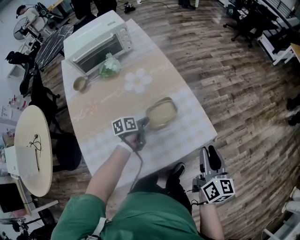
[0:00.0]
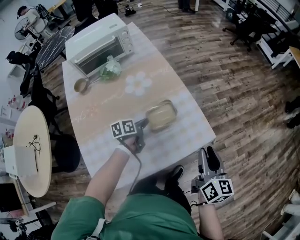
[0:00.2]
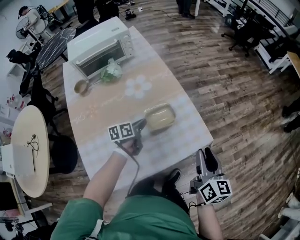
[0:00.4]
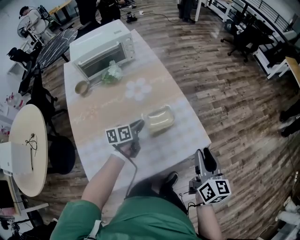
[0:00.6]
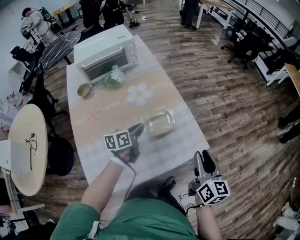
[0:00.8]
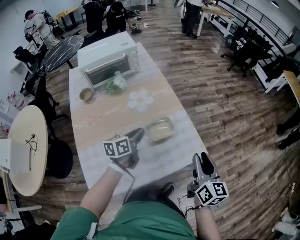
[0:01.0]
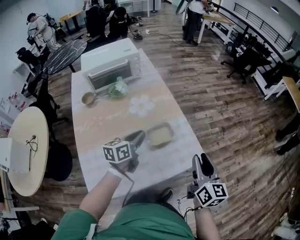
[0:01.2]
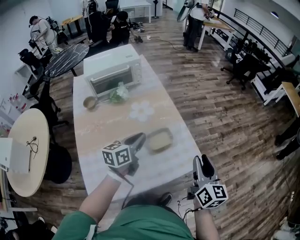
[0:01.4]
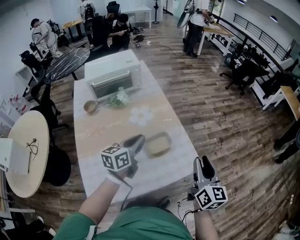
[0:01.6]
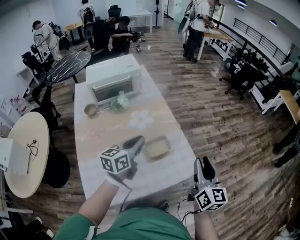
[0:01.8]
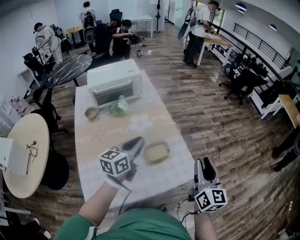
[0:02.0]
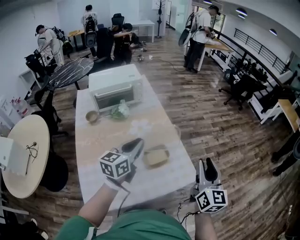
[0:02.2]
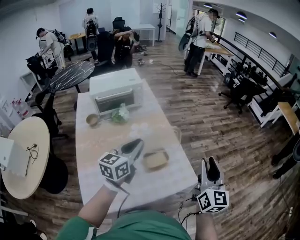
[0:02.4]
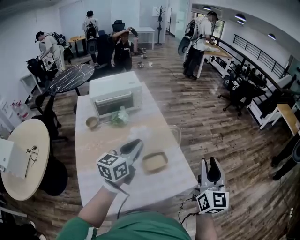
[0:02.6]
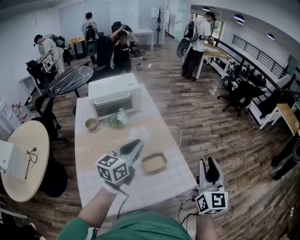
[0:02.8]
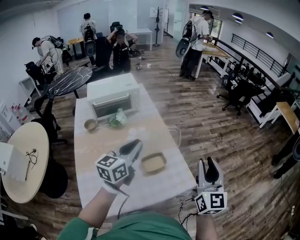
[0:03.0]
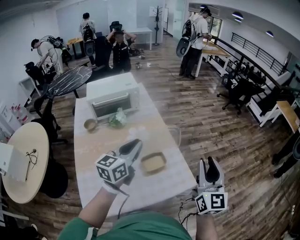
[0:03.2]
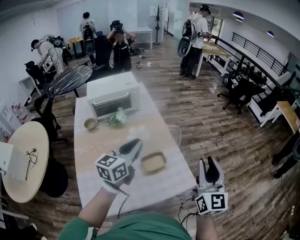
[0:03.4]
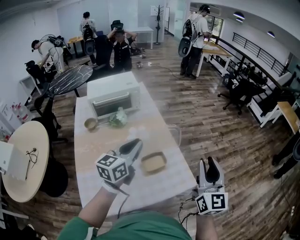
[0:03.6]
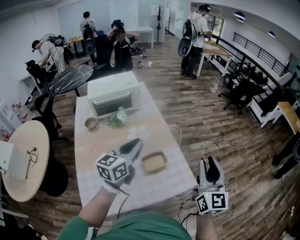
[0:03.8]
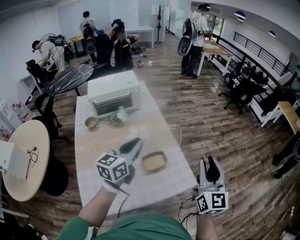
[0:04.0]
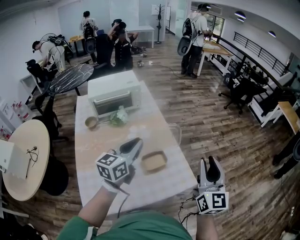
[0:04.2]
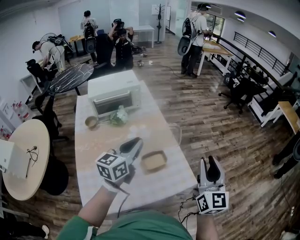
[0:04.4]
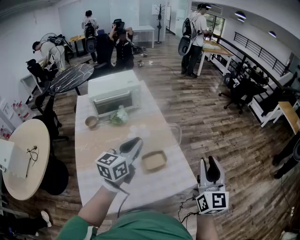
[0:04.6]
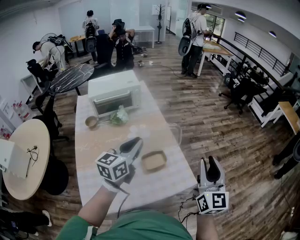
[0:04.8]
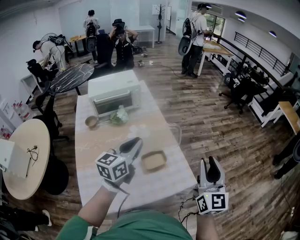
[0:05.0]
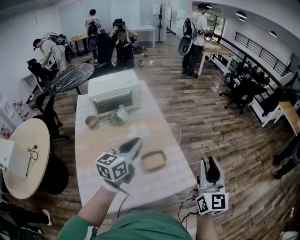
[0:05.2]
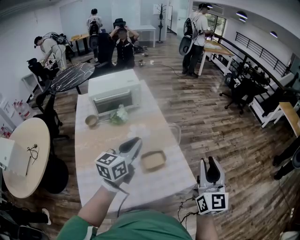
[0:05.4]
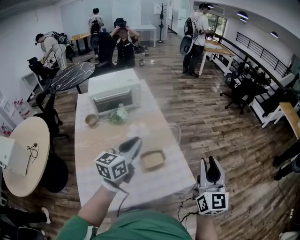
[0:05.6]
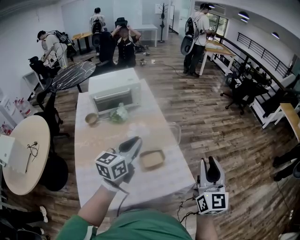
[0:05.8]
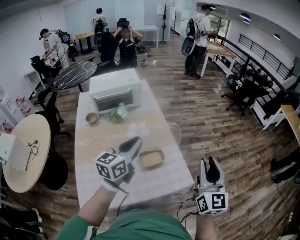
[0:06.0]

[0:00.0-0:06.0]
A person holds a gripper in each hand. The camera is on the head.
0:00.0 to 0:01.6: The right gripper moves upward, roughly 15 cm. The left gripper goes roughly 30 cm upward, and changes its angle by approximately 40 degrees.
0:01.6 to 0:03.0: Both grippers travel together upward, roughly 10 cm. The right gripper changes its angle by approximately 20 degrees.
0:03.0 to 0:04.4: Both grippers stay put.
0:04.4 to 0:06.0: The grippers stay close to where they were, moving slightly.

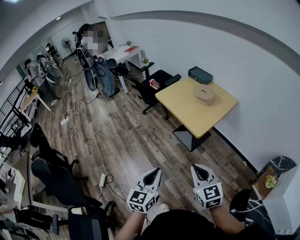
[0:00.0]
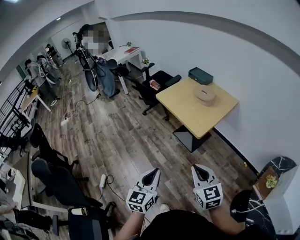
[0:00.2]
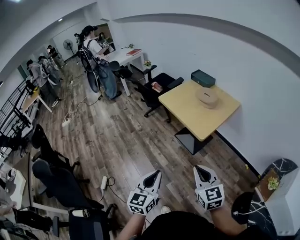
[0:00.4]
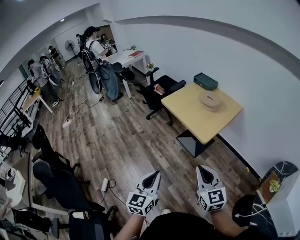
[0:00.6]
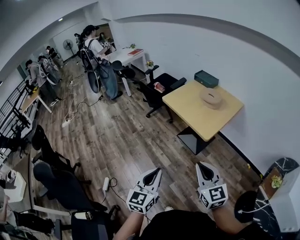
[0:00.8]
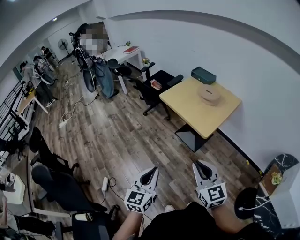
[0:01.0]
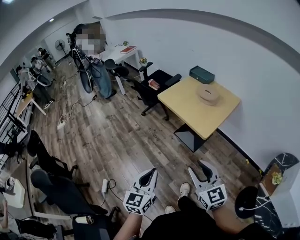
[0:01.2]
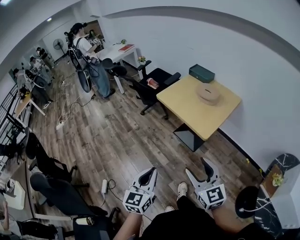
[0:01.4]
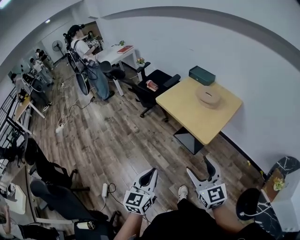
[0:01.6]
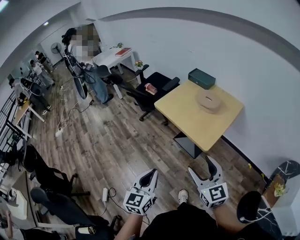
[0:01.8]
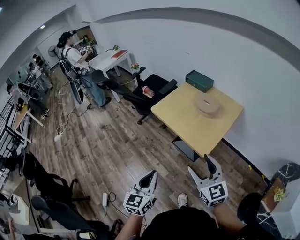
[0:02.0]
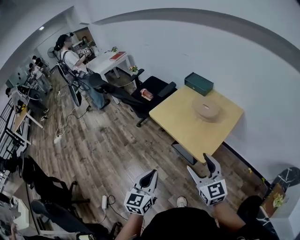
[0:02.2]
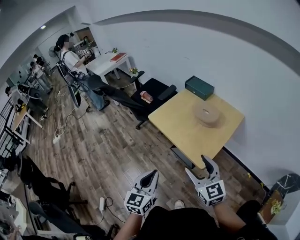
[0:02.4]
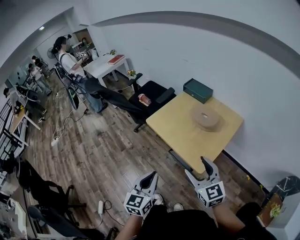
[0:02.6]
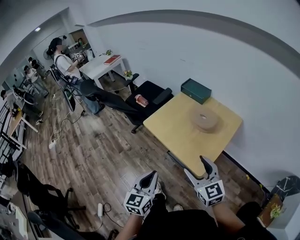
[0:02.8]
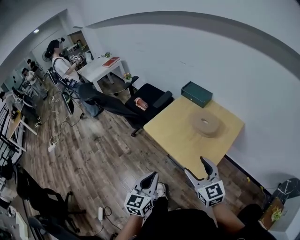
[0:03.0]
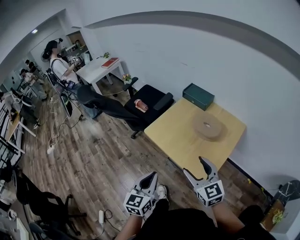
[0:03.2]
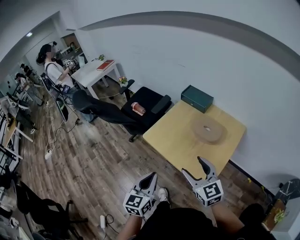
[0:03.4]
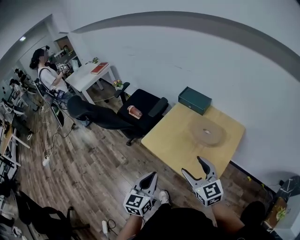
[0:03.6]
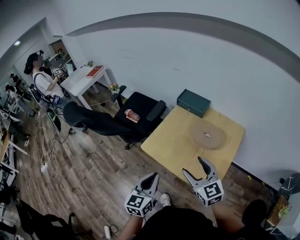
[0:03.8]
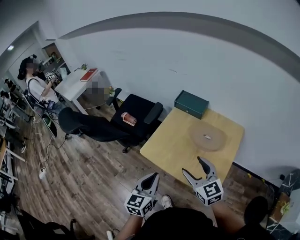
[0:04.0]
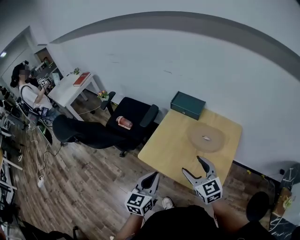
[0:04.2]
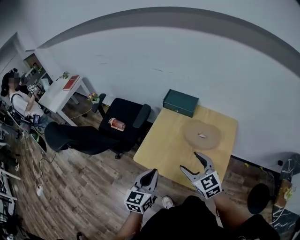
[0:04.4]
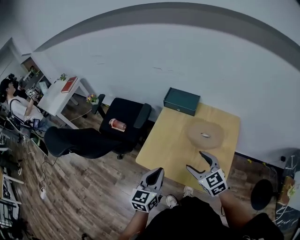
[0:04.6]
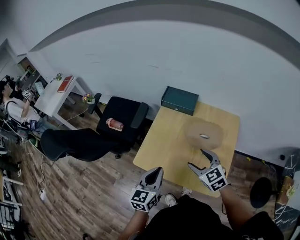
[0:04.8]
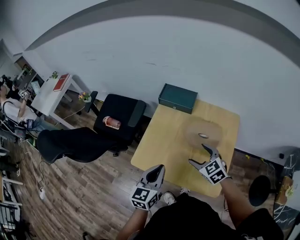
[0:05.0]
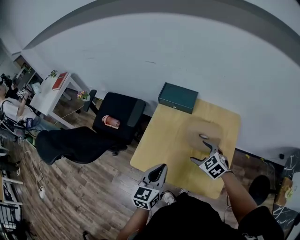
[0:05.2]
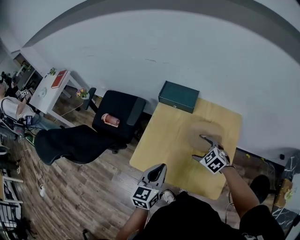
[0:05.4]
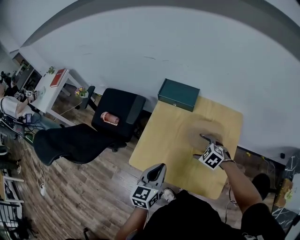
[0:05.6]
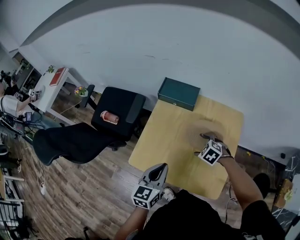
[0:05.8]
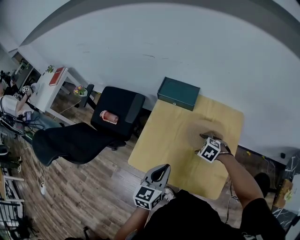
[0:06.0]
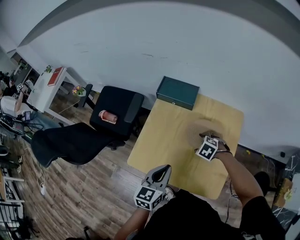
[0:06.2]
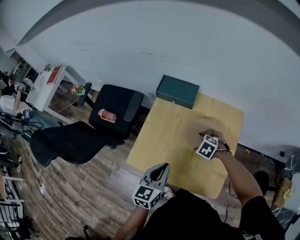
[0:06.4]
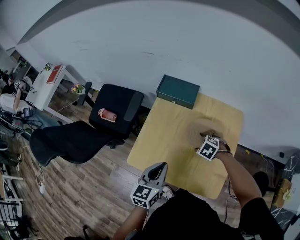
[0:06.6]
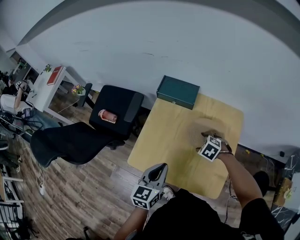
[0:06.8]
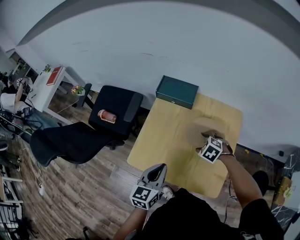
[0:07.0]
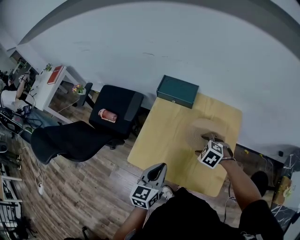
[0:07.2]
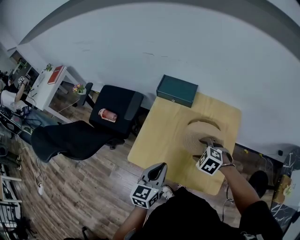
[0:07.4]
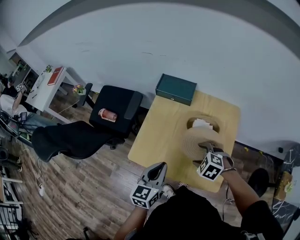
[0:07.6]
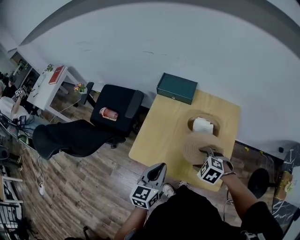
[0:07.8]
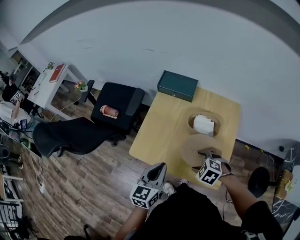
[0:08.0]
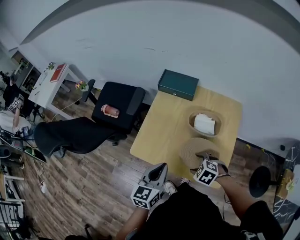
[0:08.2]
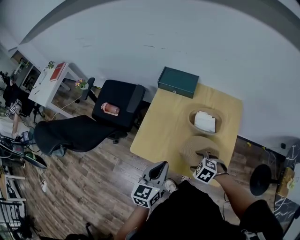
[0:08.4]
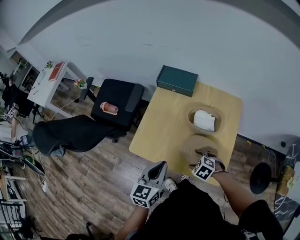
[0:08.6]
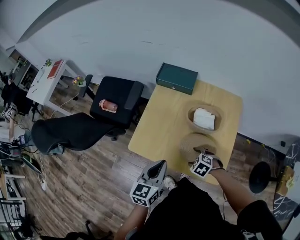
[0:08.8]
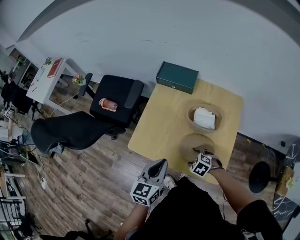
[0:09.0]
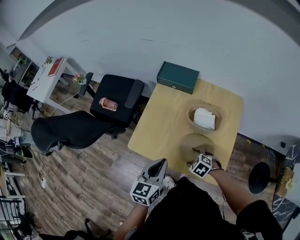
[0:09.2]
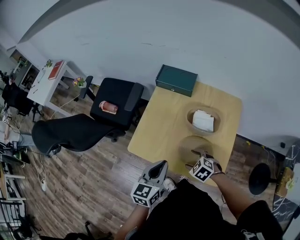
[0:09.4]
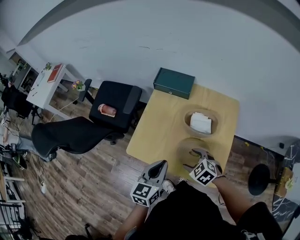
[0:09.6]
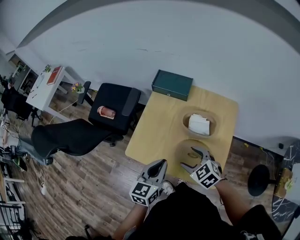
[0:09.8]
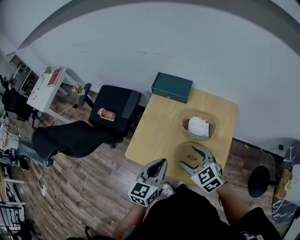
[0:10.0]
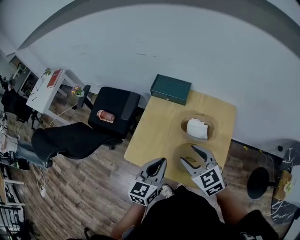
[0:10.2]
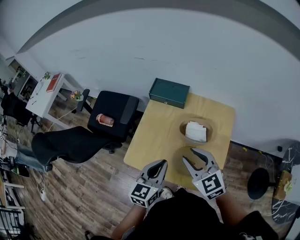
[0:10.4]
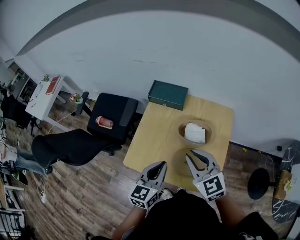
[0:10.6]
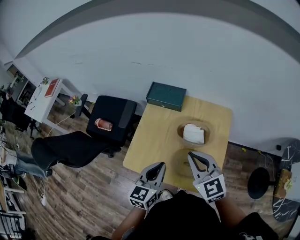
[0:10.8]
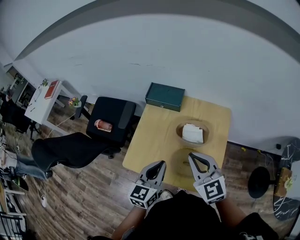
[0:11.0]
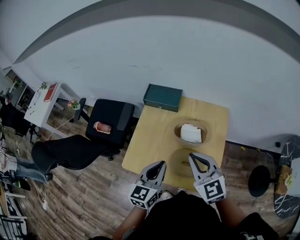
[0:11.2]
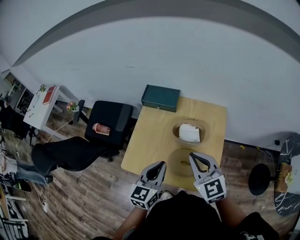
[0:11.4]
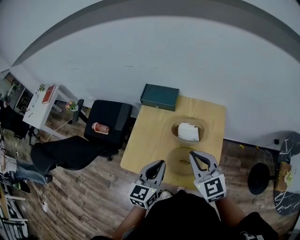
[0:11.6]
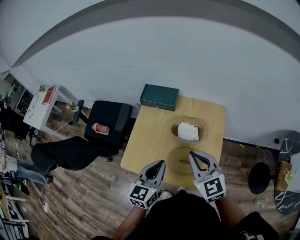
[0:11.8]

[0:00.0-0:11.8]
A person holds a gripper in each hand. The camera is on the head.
0:00.0 to 0:01.4: The grippers both shift to the left and forward by approximately 10 cm. The right gripper opens its fingers.
0:01.4 to 0:03.0: Both grippers travel together forward, some 35 cm.
0:03.0 to 0:04.4: Both grippers move forward, about 25 cm. The left gripper swivels about 20 degrees.
0:04.4 to 0:06.0: The right gripper is displaced downward, forward and to the right by roughly 25 cm, and angles its fingers downward, by about 50 degrees; the left gripper goes about 15 cm forward, to the right and downward.
0:06.0 to 0:07.4: The right gripper moves some 10 cm.
0:07.4 to 0:08.8: The right gripper shifts approximately 15 cm downward and backward.
0:08.8 to 0:10.4: The right gripper shifts about 25 cm upward, angles its fingers upward, by roughly 50 degrees, and closes. Meanwhile the left gripper travels upward by approximately 5 cm.
0:10.4 to 0:11.8: The right gripper changes place by roughly 5 cm.

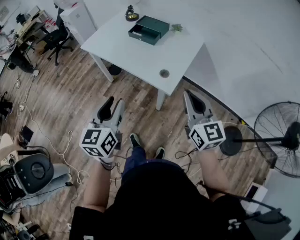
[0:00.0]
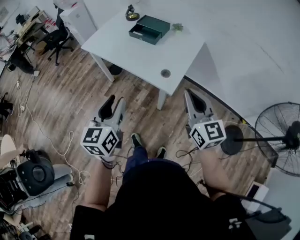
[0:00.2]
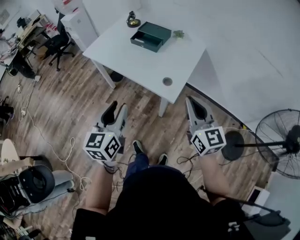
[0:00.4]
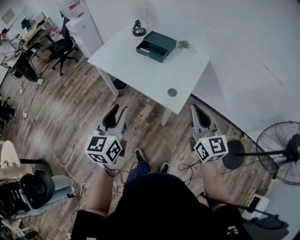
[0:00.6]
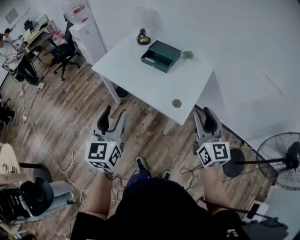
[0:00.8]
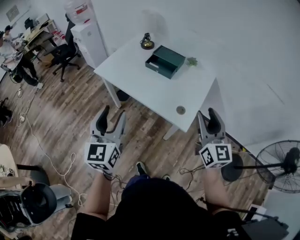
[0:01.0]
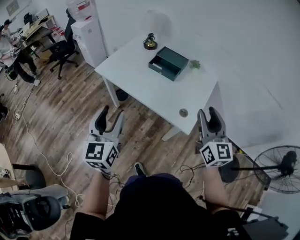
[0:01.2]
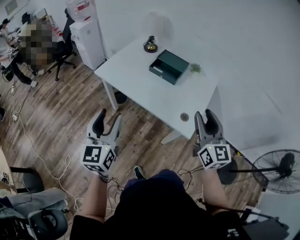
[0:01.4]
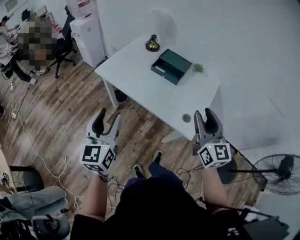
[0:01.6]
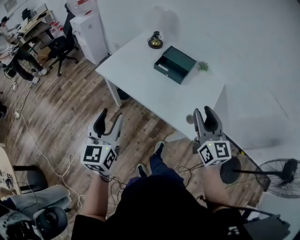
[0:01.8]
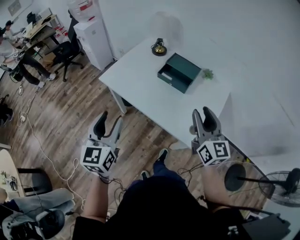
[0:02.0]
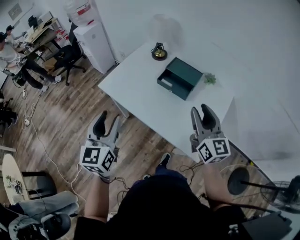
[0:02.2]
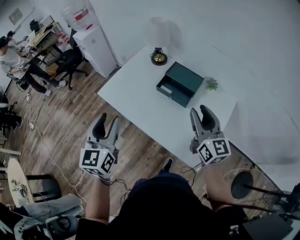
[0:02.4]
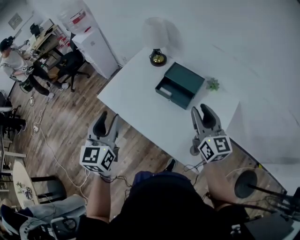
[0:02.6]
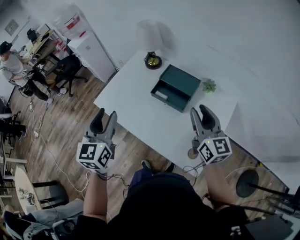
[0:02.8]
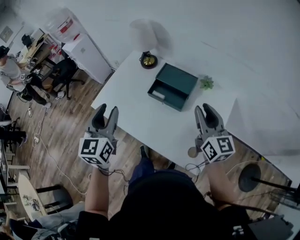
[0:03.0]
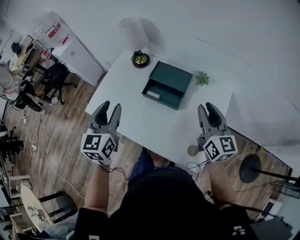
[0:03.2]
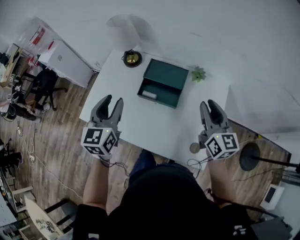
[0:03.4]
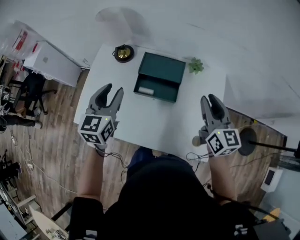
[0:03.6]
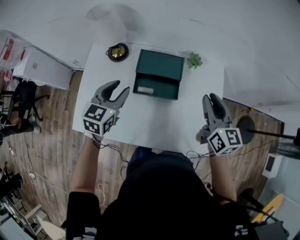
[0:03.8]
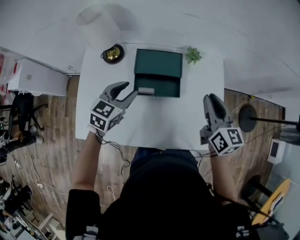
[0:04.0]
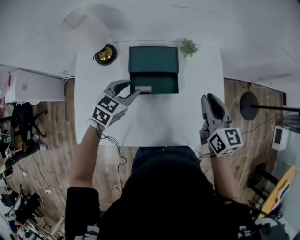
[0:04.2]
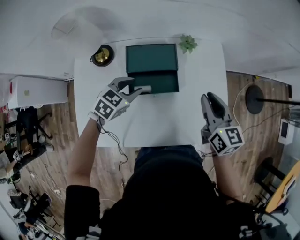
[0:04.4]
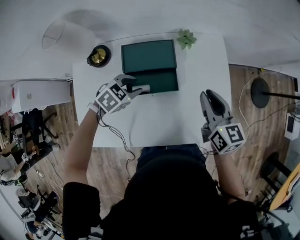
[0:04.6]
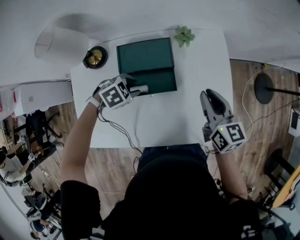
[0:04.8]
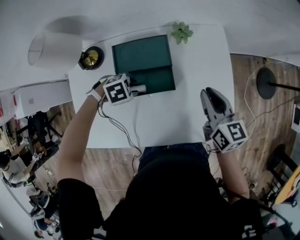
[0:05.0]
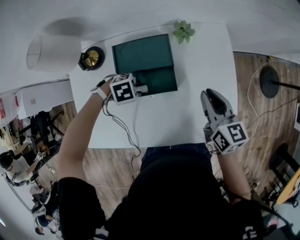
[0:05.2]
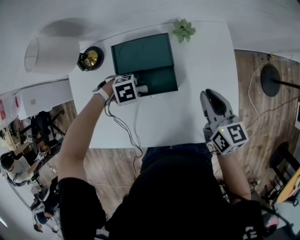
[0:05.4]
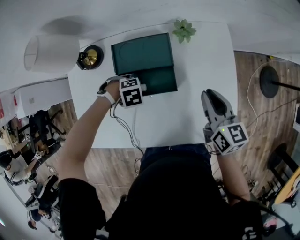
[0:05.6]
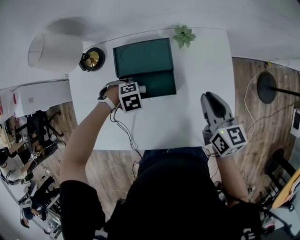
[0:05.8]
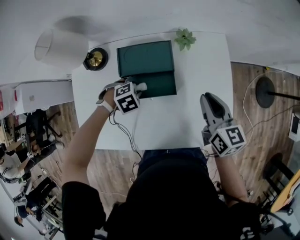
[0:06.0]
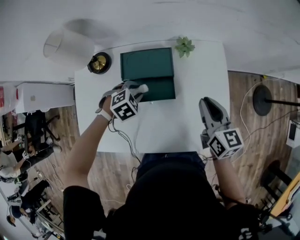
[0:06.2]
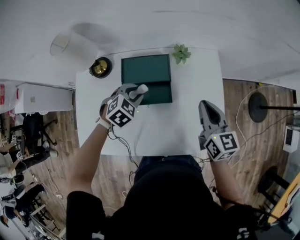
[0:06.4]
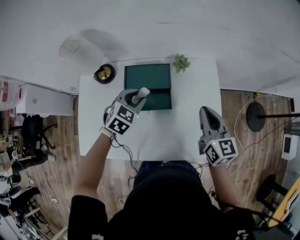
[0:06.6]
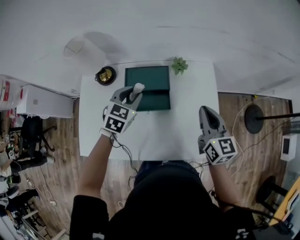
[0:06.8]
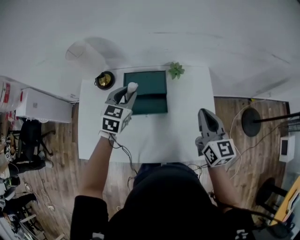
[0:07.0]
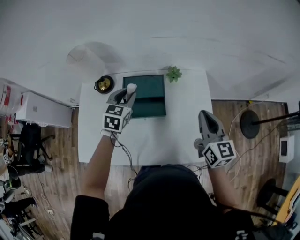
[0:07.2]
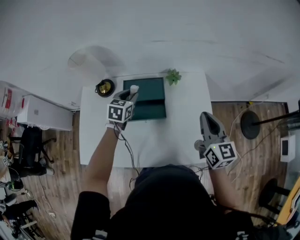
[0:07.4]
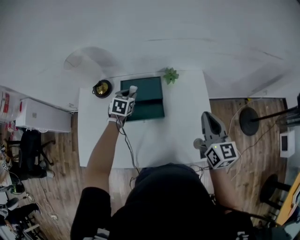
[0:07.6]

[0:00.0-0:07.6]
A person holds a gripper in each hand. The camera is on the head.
0:00.0 to 0:01.6: The right gripper heads forward and to the left, covering approximately 20 cm, and opens; the left gripper goes approximately 30 cm to the left and forward.
0:01.6 to 0:03.0: Both grippers travel together forward, some 30 cm.
0:03.0 to 0:04.6: The left gripper moves downward, approximately 30 cm, and points its fingers approximately 50 degrees further downward. Meanwhile the right gripper heads downward, covering roughly 15 cm, and changes its angle by some 40 degrees.
0:04.6 to 0:06.0: The left gripper heads downward, covering approximately 5 cm, and turns by roughly 30 degrees.
0:06.0 to 0:07.6: Both grippers travel together upward, about 10 cm. The left gripper tilts its fingers about 30 degrees upward.
